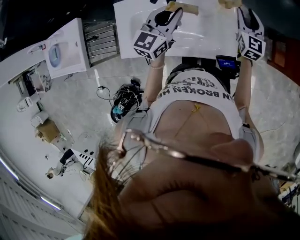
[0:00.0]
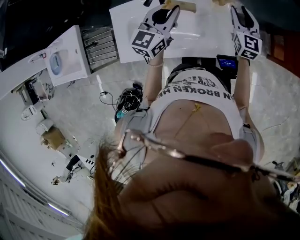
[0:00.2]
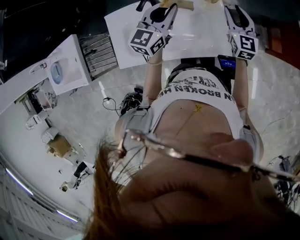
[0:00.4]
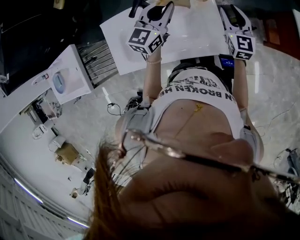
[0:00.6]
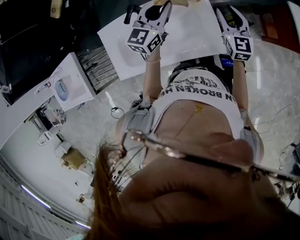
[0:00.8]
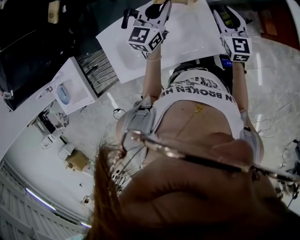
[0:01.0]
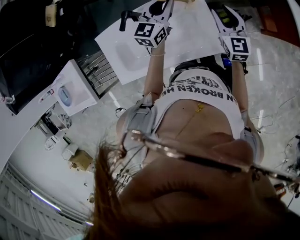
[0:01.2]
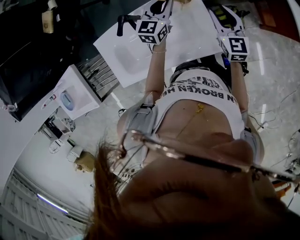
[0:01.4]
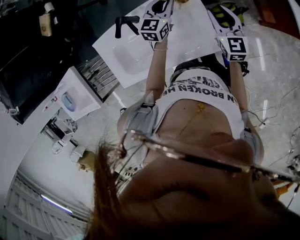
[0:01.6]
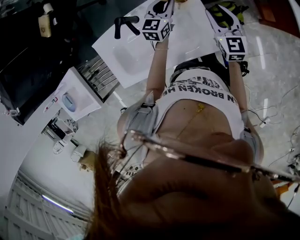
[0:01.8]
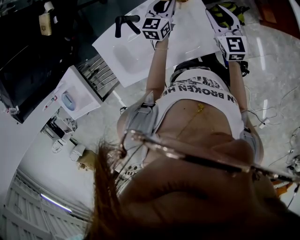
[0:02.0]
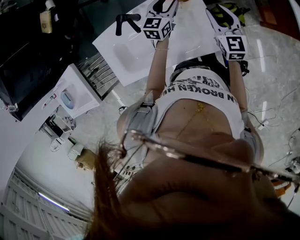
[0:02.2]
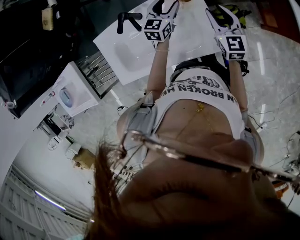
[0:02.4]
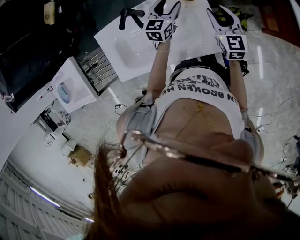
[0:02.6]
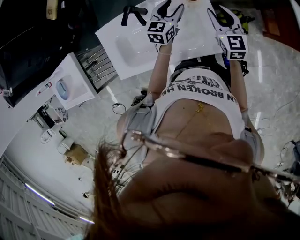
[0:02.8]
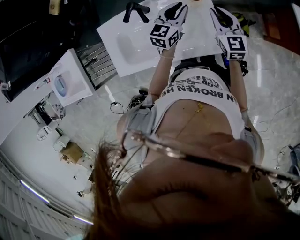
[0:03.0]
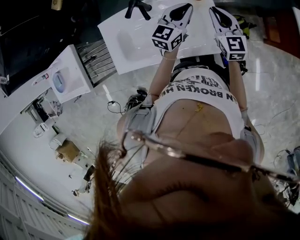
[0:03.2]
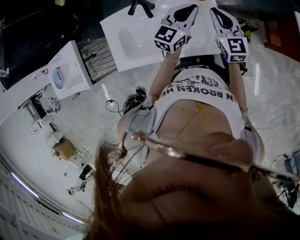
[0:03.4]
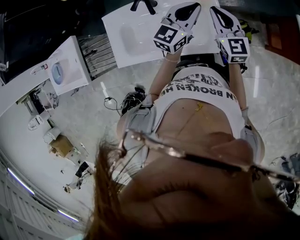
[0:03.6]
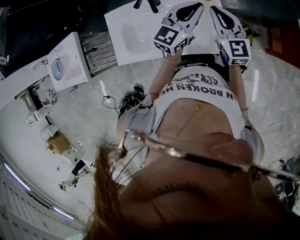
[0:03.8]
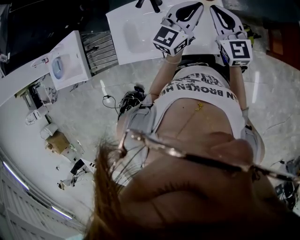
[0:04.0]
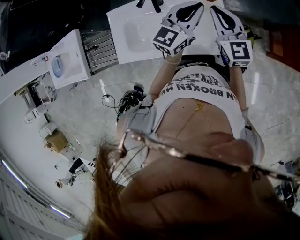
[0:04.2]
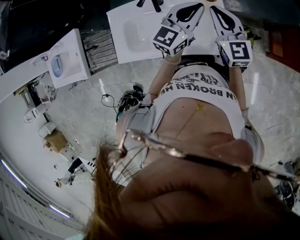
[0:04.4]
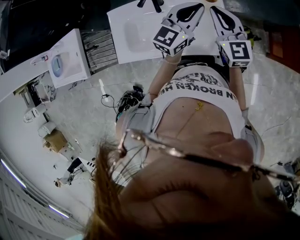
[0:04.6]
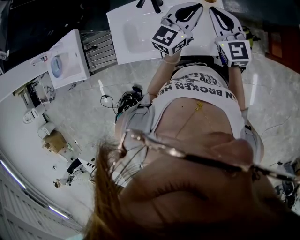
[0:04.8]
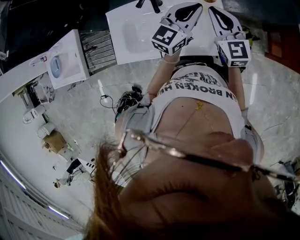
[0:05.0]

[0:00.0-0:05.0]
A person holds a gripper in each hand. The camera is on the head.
0:00.0 to 0:01.6: The right gripper shifts approximately 5 cm to the right. The left gripper travels forward, downward and to the right by some 25 cm.
0:01.6 to 0:03.4: The right gripper travels to the left by some 5 cm, and closes up. Meanwhile the left gripper moves backward and upward, approximately 15 cm, and opens, then closes once more.
0:03.4 to 0:05.0: The grippers both shift upward by some 5 cm.

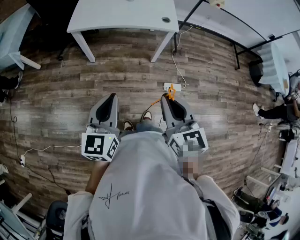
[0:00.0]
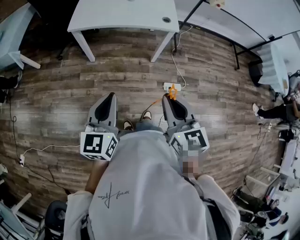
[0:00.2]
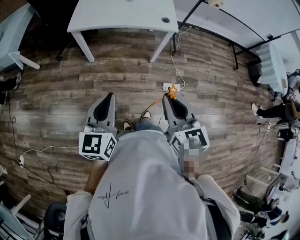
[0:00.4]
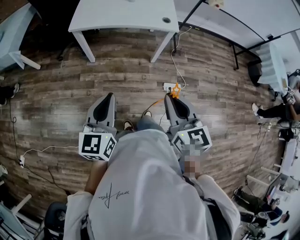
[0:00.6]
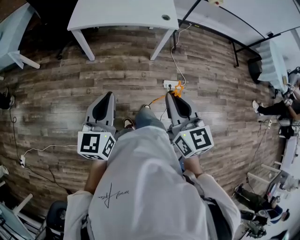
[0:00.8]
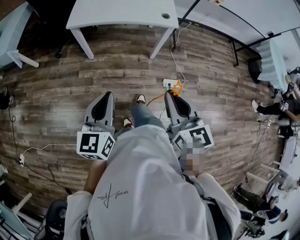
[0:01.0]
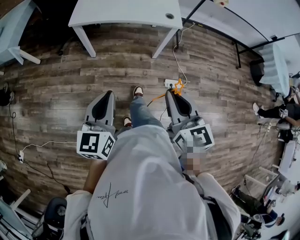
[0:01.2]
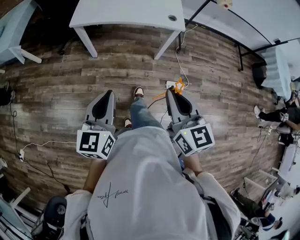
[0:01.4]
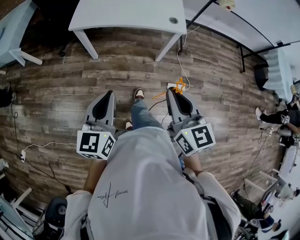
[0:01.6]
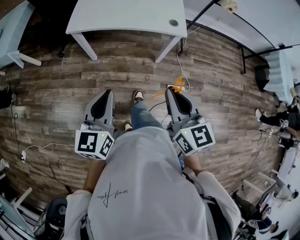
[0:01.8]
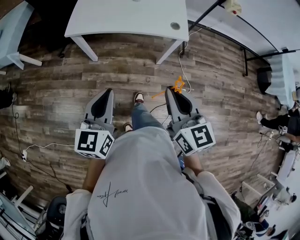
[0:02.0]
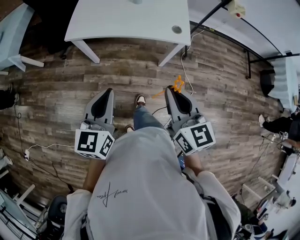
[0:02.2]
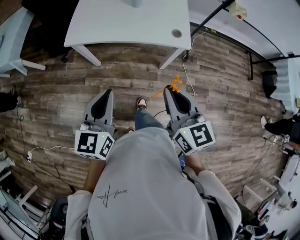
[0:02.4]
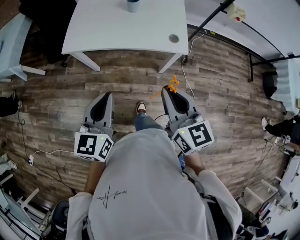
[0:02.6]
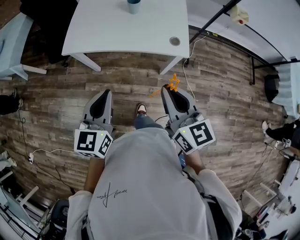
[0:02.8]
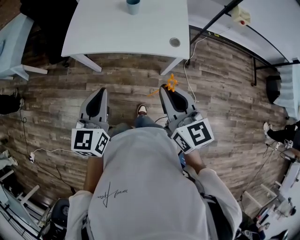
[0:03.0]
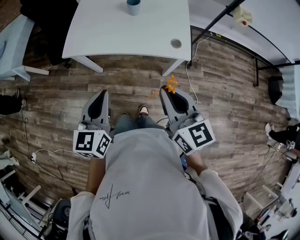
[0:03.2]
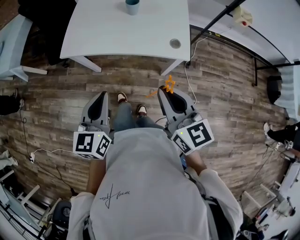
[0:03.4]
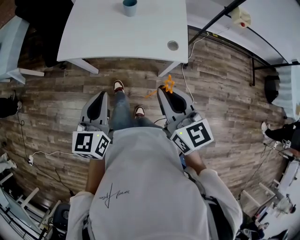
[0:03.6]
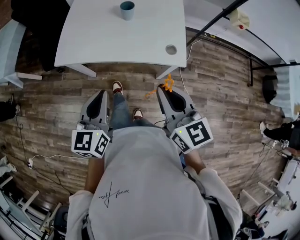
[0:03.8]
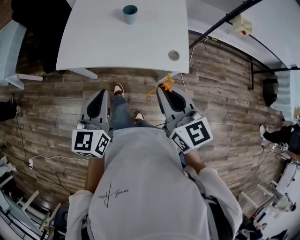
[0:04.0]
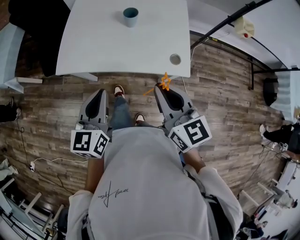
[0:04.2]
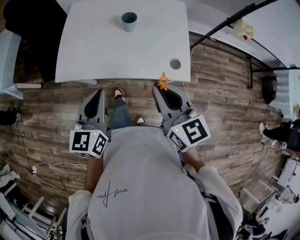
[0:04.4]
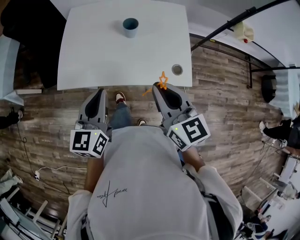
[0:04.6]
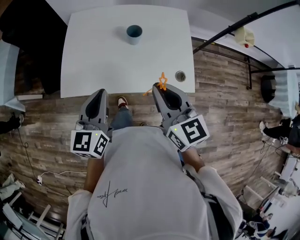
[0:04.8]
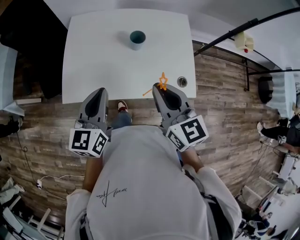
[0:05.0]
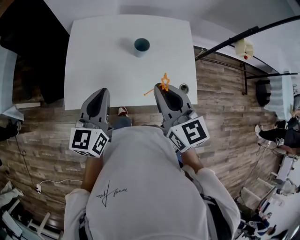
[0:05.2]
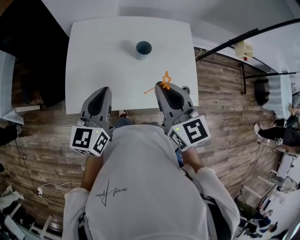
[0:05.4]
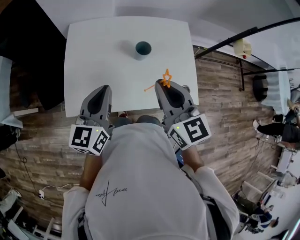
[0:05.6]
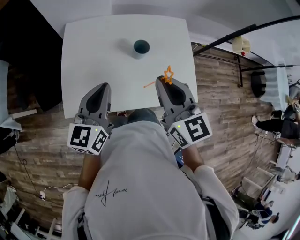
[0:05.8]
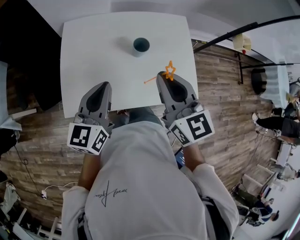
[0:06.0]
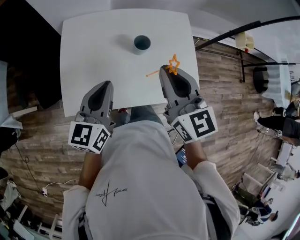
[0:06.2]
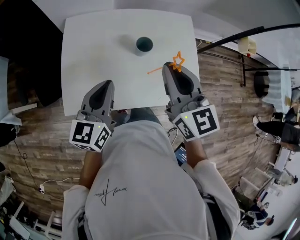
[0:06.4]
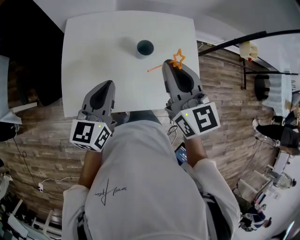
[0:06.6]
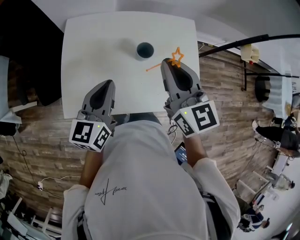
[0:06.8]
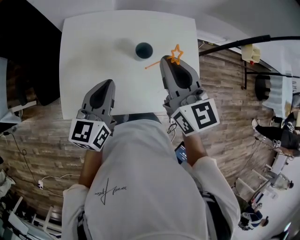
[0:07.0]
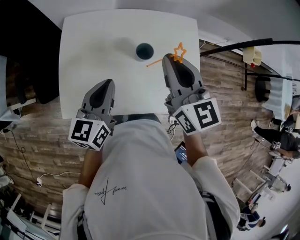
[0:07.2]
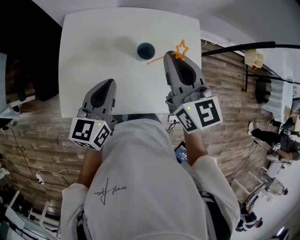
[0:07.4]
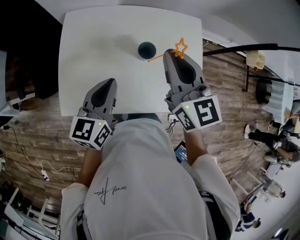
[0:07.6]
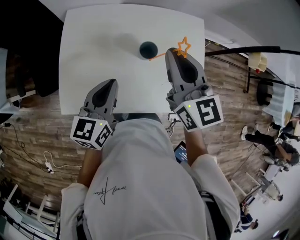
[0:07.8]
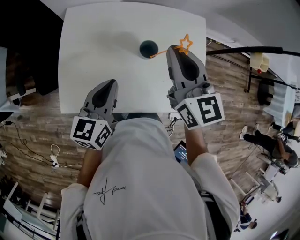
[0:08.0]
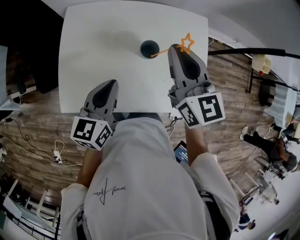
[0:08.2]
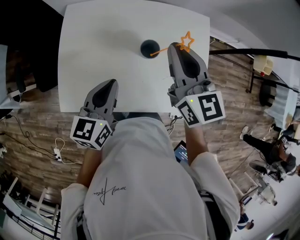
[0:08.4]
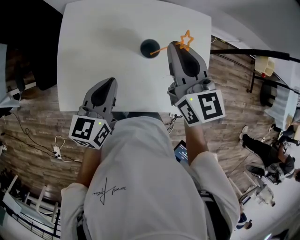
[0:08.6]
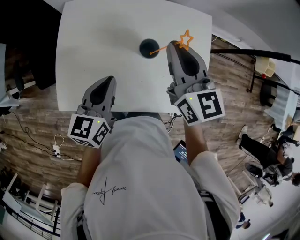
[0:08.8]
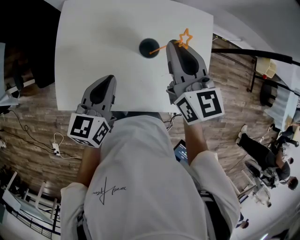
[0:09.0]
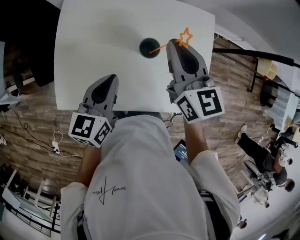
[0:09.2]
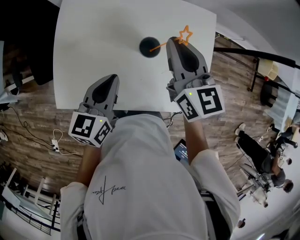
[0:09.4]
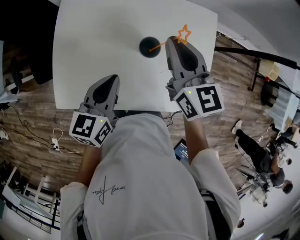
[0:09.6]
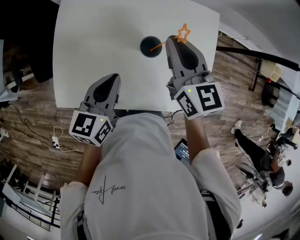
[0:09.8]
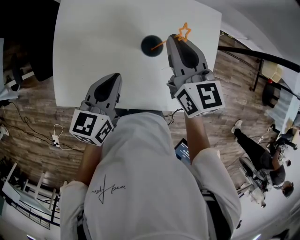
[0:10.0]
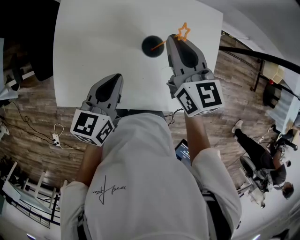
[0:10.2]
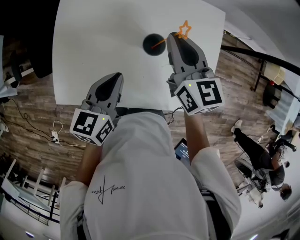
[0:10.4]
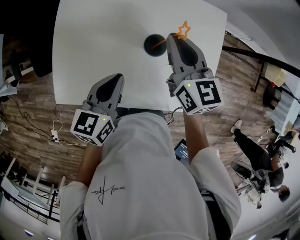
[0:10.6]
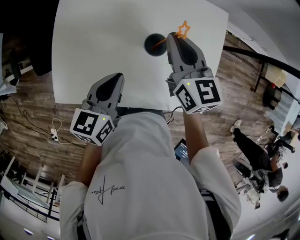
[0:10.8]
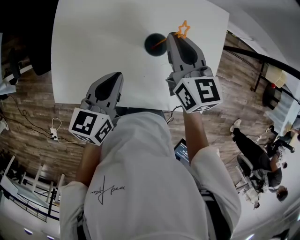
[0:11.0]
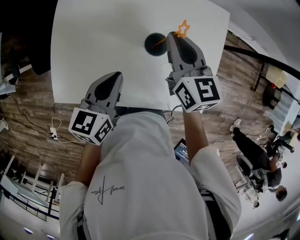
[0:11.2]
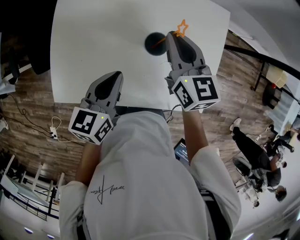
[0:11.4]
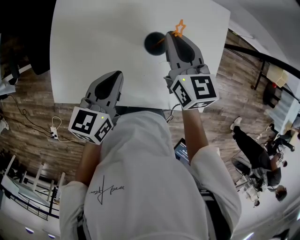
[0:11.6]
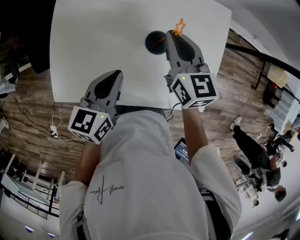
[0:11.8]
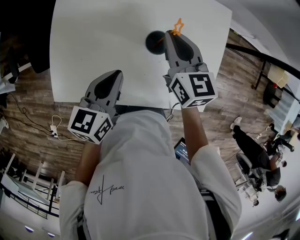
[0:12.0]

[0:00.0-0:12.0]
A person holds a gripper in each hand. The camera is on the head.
0:00.0 to 0:01.6: Both grippers move forward, some 5 cm.
0:01.6 to 0:03.0: Both grippers travel together forward, about 20 cm.
0:03.0 to 0:04.4: Both grippers travel together forward, about 15 cm.
0:04.4 to 0:06.0: The right gripper heads forward and to the left, covering approximately 20 cm; the left gripper heads forward, covering about 20 cm.
0:06.0 to 0:07.6: The right gripper goes approximately 15 cm forward; the left gripper goes roughly 5 cm forward.
0:07.6 to 0:09.0: The right gripper changes place by roughly 5 cm.
0:09.0 to 0:10.4: The right gripper heads downward, covering approximately 5 cm.
0:10.4 to 0:12.0: The right gripper heads downward, covering approximately 5 cm.

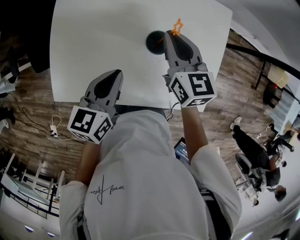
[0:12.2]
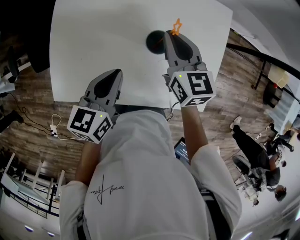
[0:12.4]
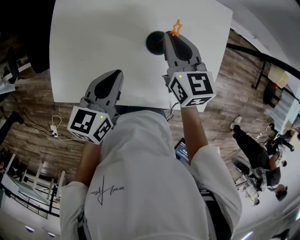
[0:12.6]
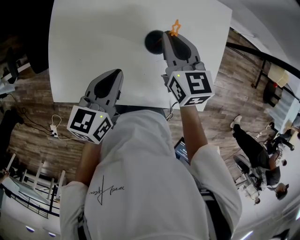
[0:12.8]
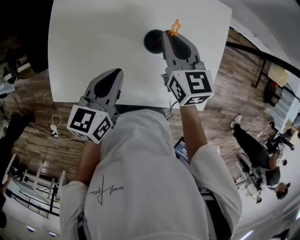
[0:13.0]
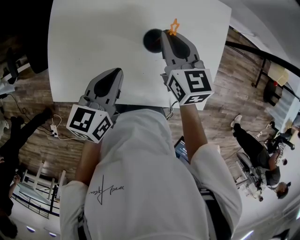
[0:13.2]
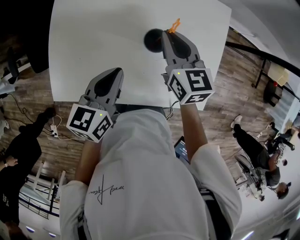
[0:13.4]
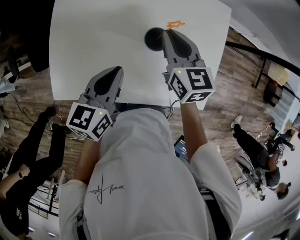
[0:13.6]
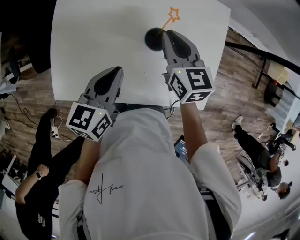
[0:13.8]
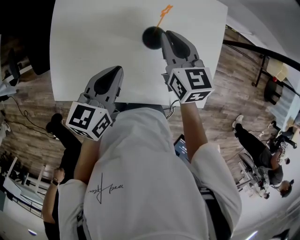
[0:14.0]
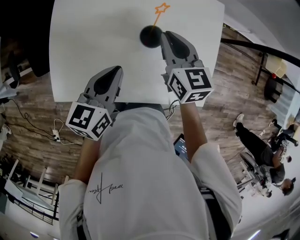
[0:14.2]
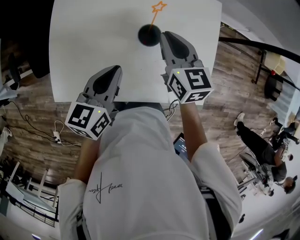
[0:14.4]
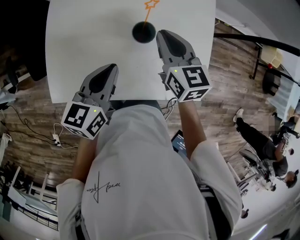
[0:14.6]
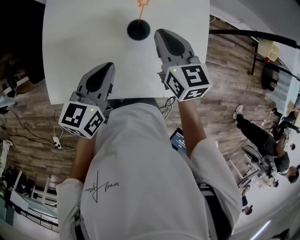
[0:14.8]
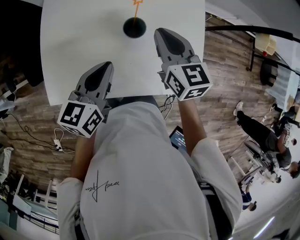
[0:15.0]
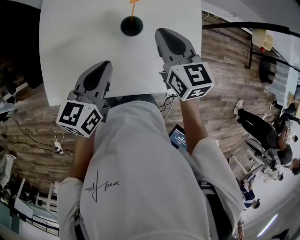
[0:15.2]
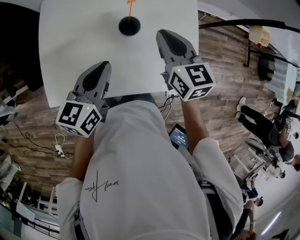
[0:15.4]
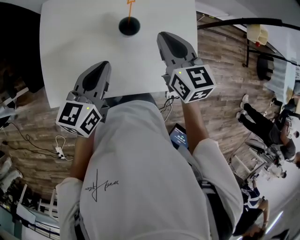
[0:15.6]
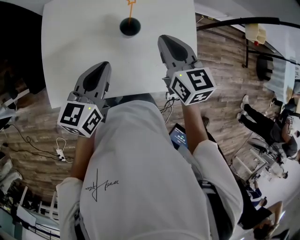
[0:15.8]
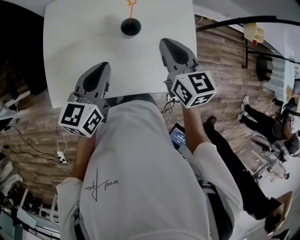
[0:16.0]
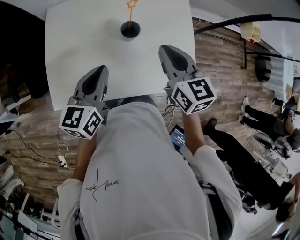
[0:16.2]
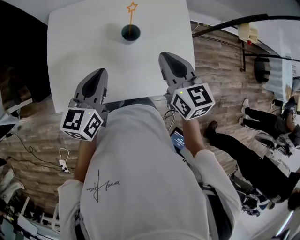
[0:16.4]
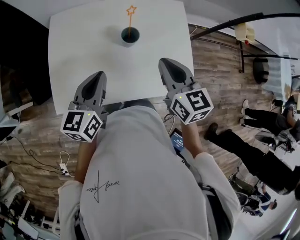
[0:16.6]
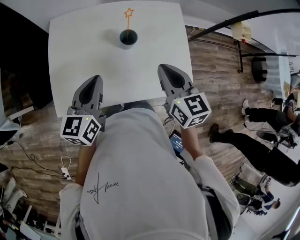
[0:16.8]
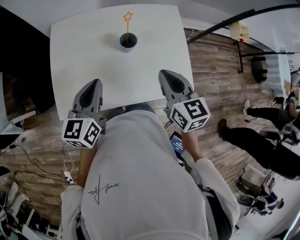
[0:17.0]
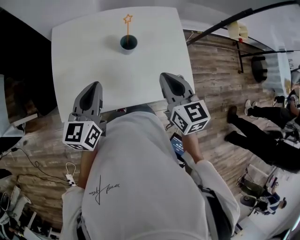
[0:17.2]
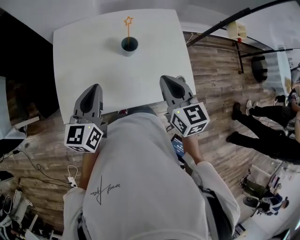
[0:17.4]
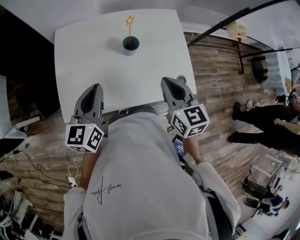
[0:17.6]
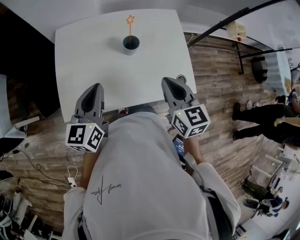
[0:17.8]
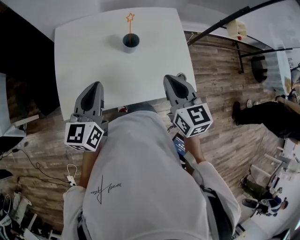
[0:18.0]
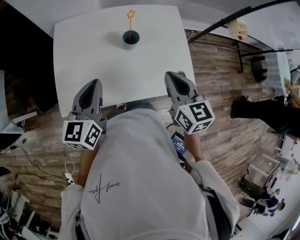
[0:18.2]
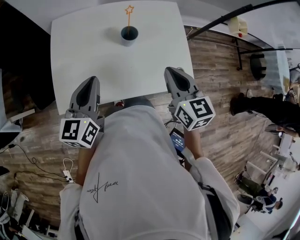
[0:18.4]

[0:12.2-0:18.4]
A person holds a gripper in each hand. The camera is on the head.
0:12.2 to 0:13.8: Neither gripper changes place.
0:13.8 to 0:15.4: The right gripper travels backward, to the right and upward by some 10 cm; the left gripper moves some 5 cm.
0:15.4 to 0:16.8: The right gripper goes some 10 cm backward, while the left gripper moves roughly 5 cm.
0:16.8 to 0:18.4: There are only small adjustments of the grippers.

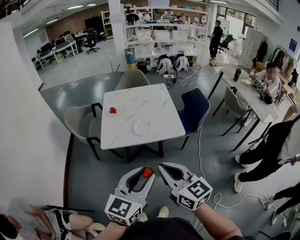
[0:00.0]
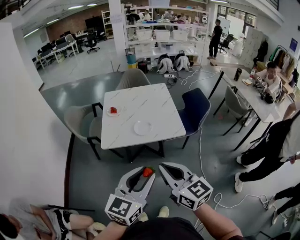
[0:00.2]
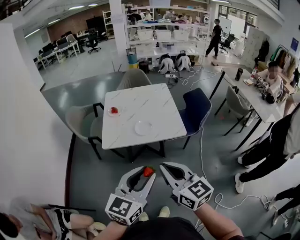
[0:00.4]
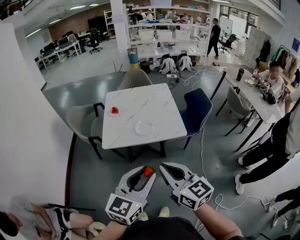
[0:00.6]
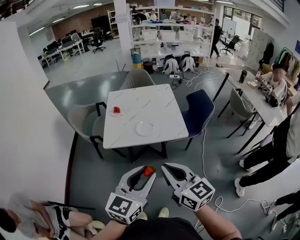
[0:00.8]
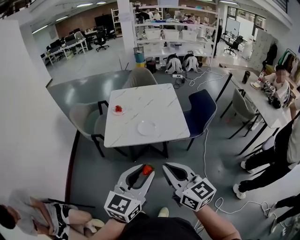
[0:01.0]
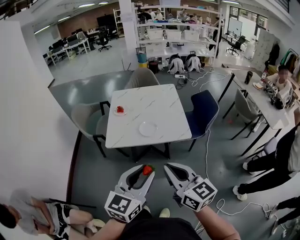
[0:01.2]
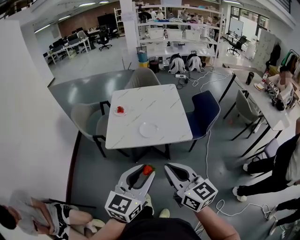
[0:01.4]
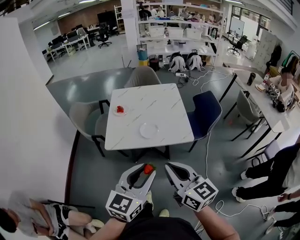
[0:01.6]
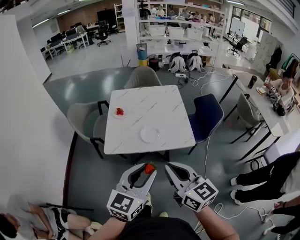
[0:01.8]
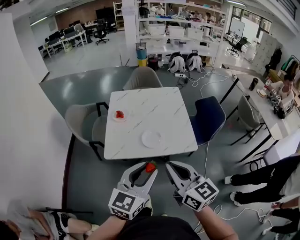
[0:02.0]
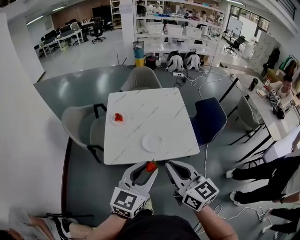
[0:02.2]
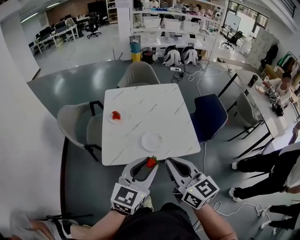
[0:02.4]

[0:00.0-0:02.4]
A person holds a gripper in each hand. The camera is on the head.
0:00.0 to 0:01.2: The grippers make only small movements.
0:01.2 to 0:02.4: Both grippers travel together forward, some 25 cm.
